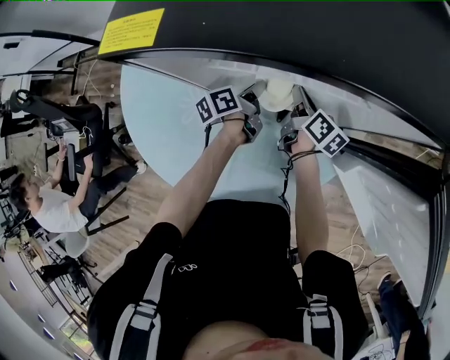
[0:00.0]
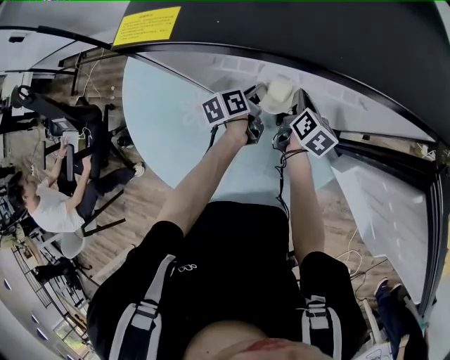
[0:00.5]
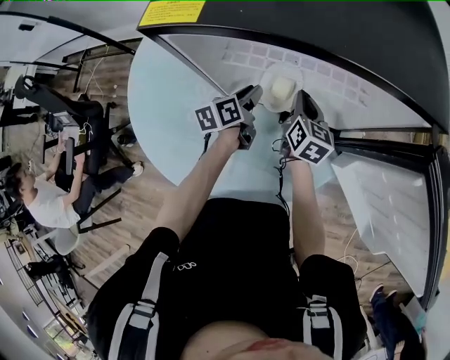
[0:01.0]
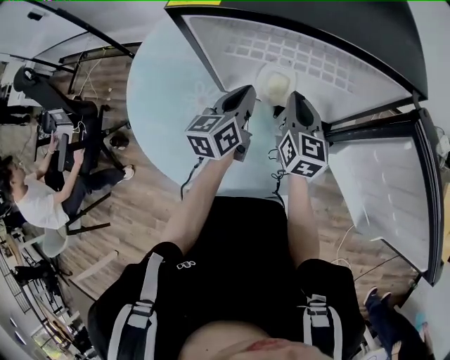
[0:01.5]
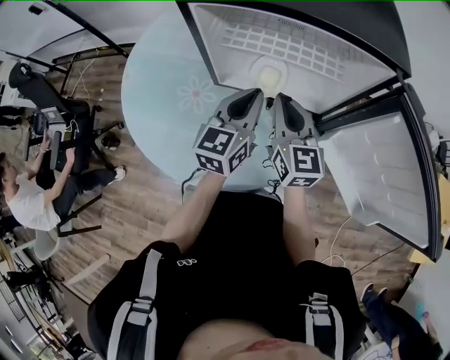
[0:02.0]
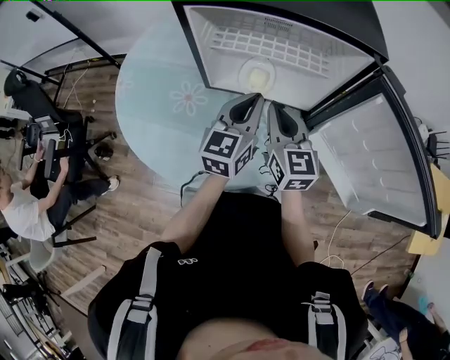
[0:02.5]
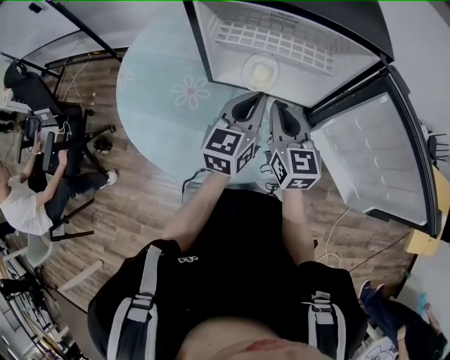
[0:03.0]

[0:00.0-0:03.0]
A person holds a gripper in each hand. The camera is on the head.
0:00.0 to 0:01.5: The grippers both shift upward and backward by about 15 cm. The left gripper changes its angle by about 40 degrees. Meanwhile the right gripper rolls counterclockwise, seen from behind, by roughly 40 degrees.
0:01.5 to 0:03.0: The right gripper is displaced backward and upward by some 10 cm. Meanwhile the left gripper shifts about 10 cm backward, upward and to the right.

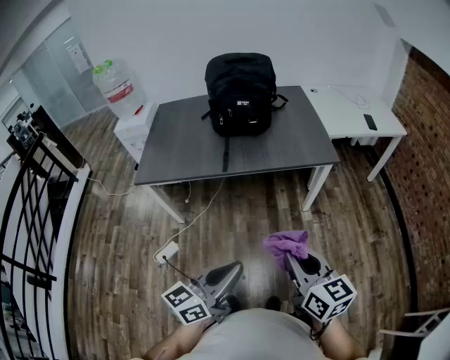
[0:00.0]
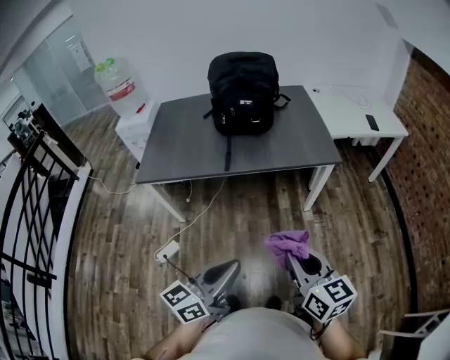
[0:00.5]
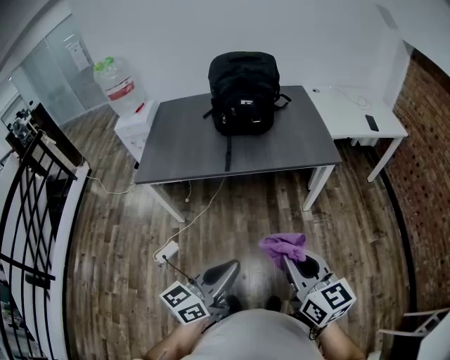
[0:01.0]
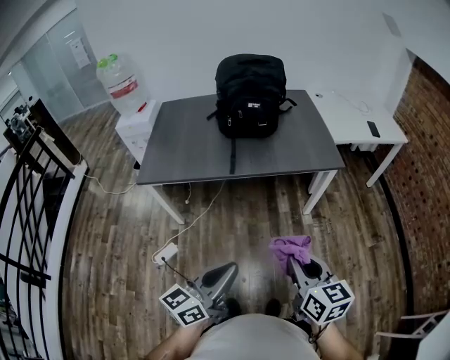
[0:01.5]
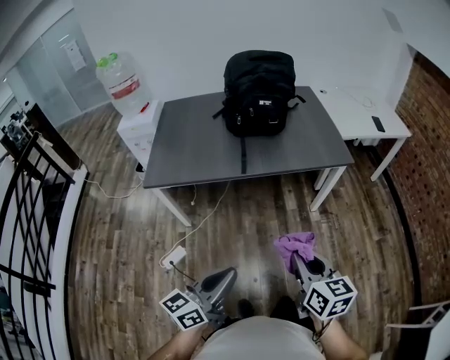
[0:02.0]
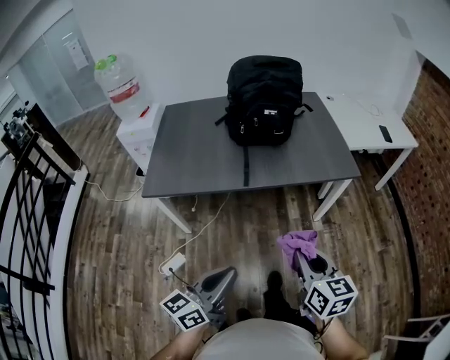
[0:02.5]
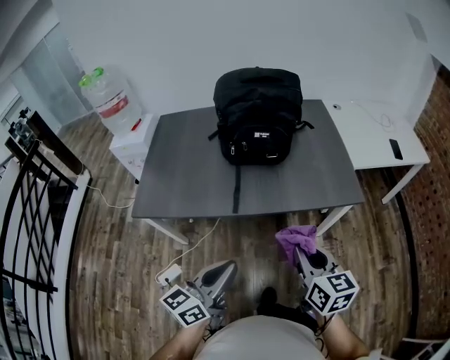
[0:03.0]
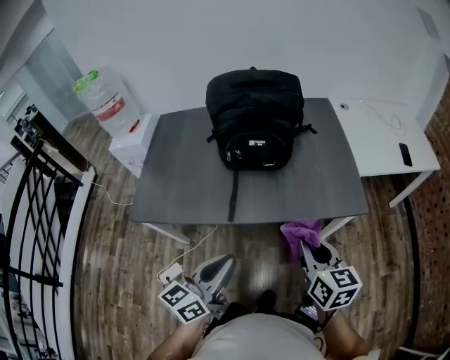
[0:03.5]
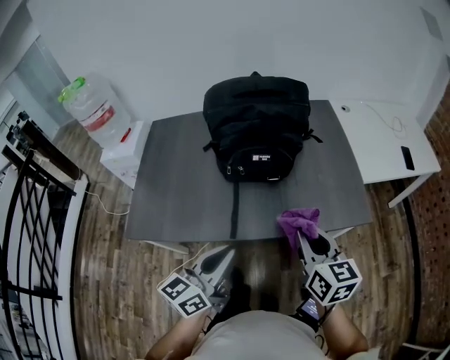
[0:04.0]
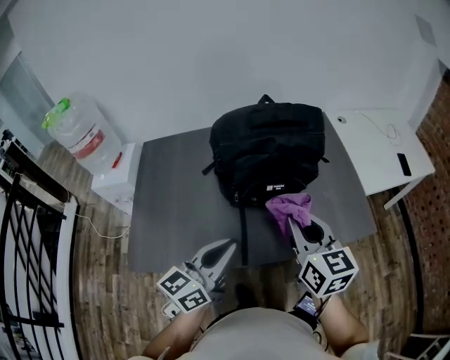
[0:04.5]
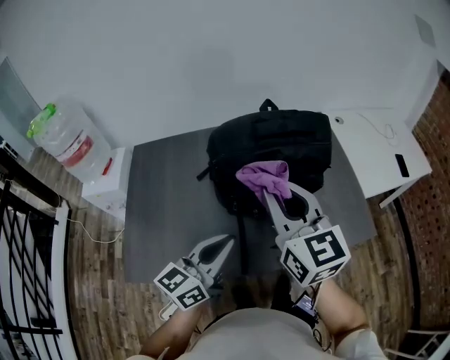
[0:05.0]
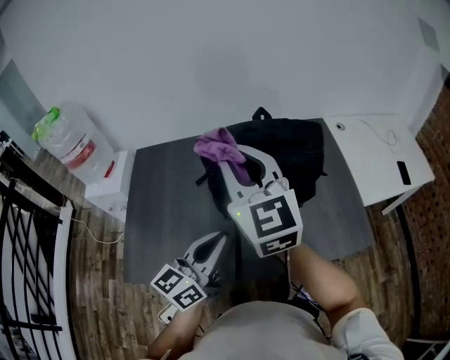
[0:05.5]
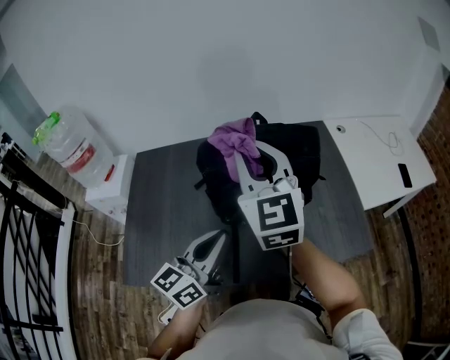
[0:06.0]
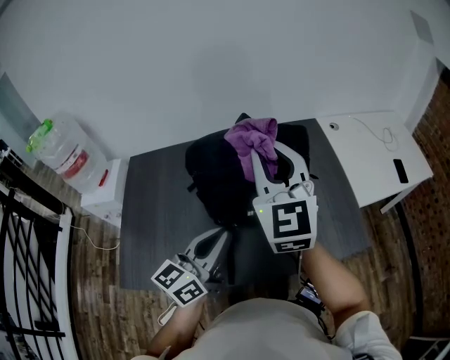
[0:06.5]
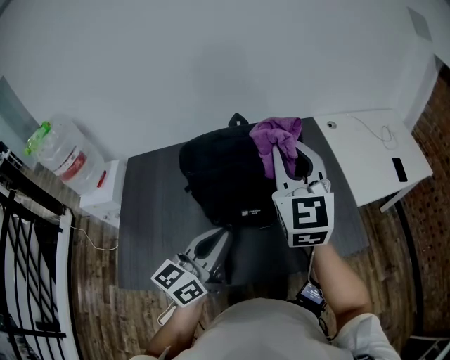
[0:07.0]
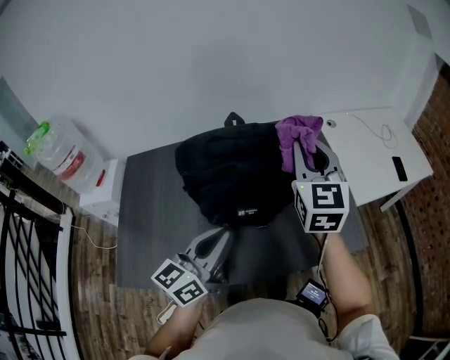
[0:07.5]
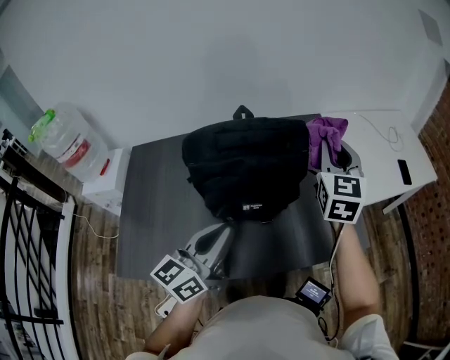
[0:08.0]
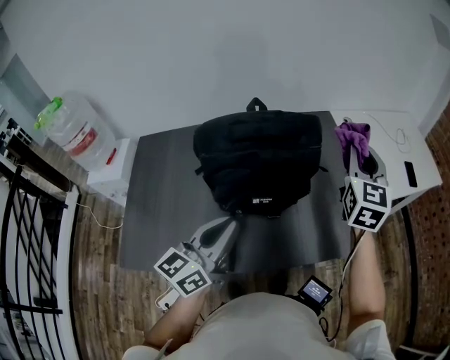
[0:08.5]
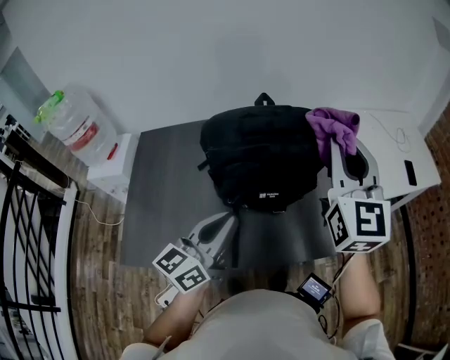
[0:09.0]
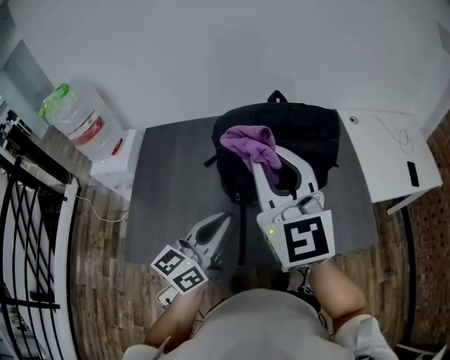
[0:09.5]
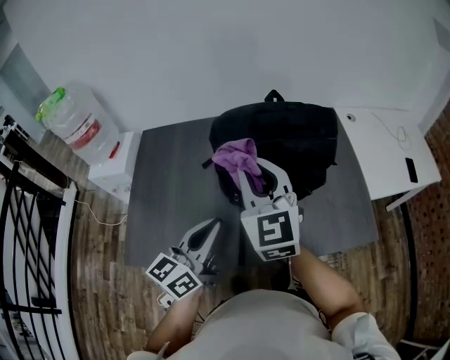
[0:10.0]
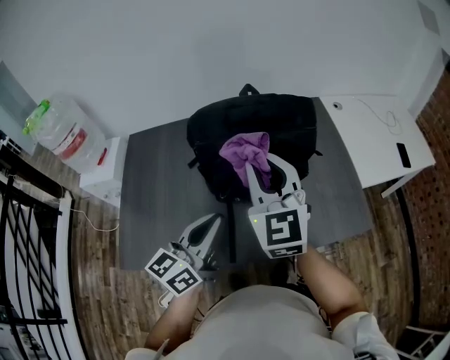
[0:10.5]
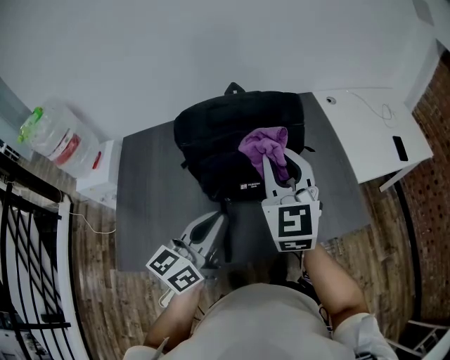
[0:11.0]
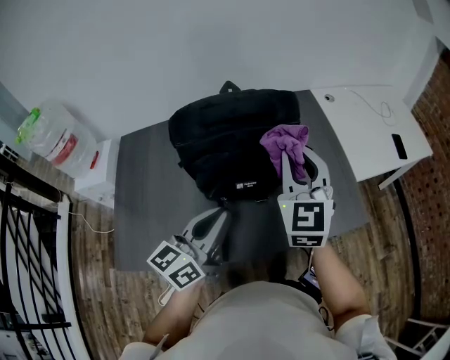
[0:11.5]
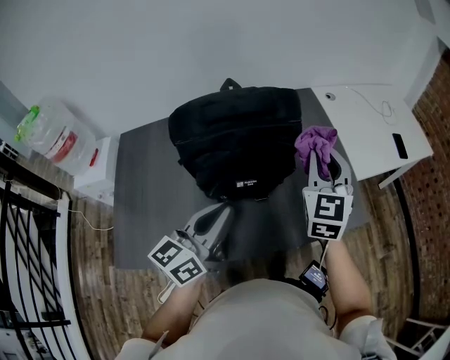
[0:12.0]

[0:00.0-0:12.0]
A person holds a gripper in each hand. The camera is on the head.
0:00.0 to 0:02.0: Both grippers move to the left, about 10 cm.
0:02.0 to 0:04.0: The grippers both shift forward by roughly 40 cm.
0:04.0 to 0:06.0: The right gripper travels forward, upward and to the left by approximately 35 cm, and changes its angle by about 40 degrees. The left gripper heads forward, covering some 20 cm.
0:06.0 to 0:08.0: The right gripper moves to the right and forward, about 25 cm, and rotates some 30 degrees.
0:08.0 to 0:10.0: The left gripper shifts roughly 10 cm to the left. The right gripper travels to the left and backward by about 30 cm, and turns by approximately 30 degrees.
0:10.0 to 0:12.0: The right gripper shifts about 25 cm to the right, and swivels approximately 30 degrees. Meanwhile the left gripper shifts some 10 cm to the right.

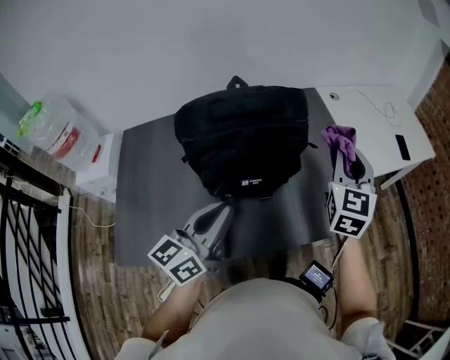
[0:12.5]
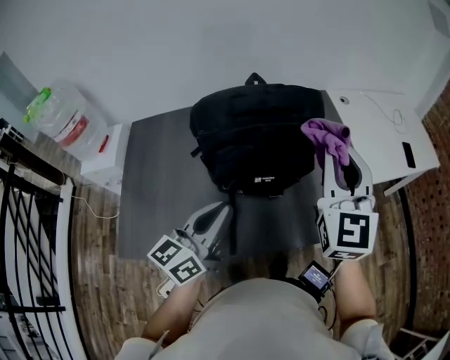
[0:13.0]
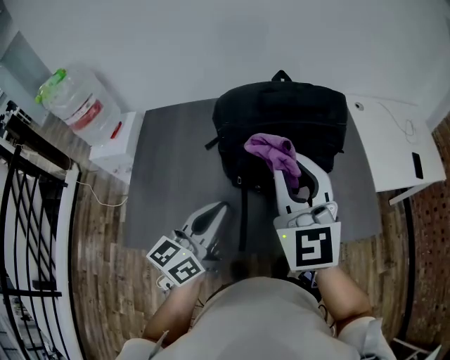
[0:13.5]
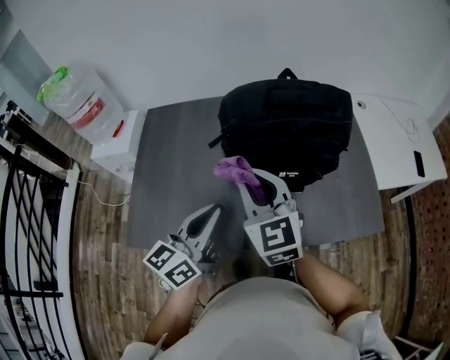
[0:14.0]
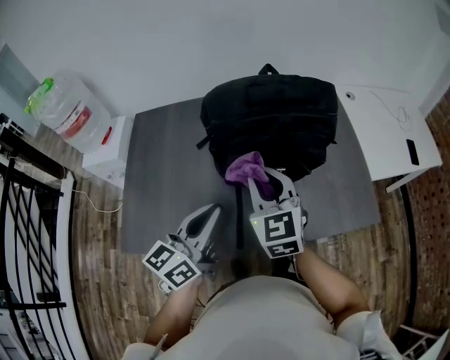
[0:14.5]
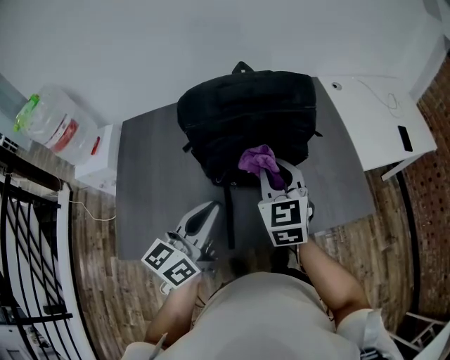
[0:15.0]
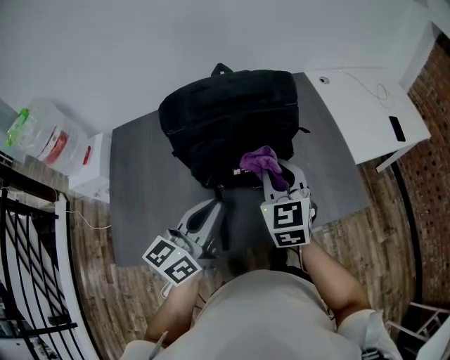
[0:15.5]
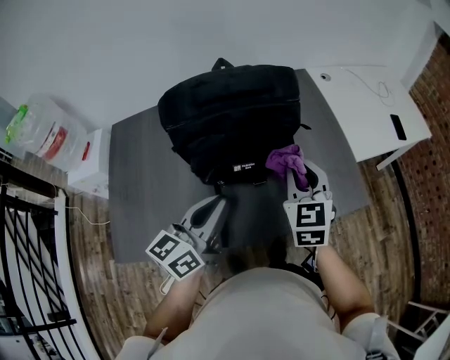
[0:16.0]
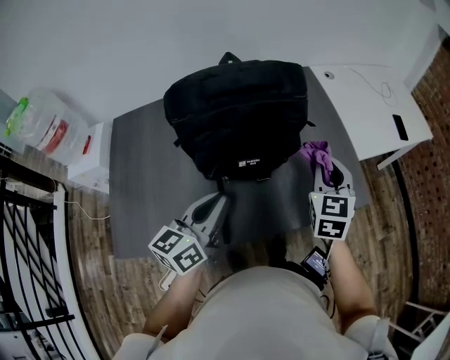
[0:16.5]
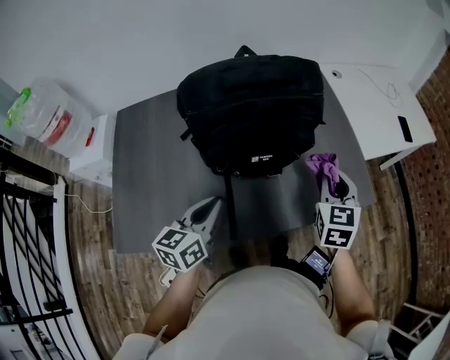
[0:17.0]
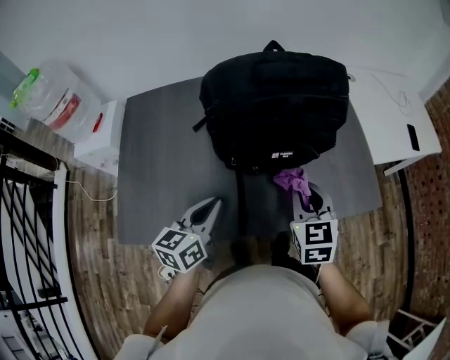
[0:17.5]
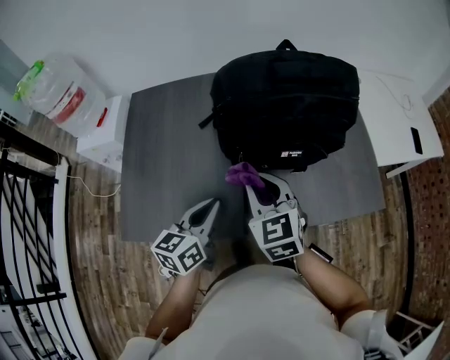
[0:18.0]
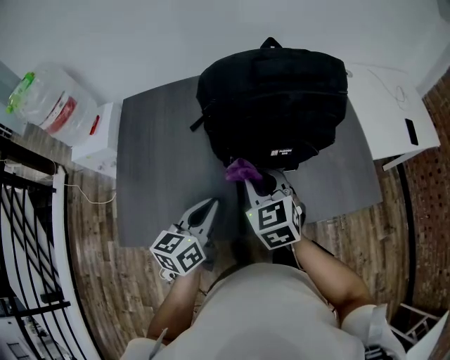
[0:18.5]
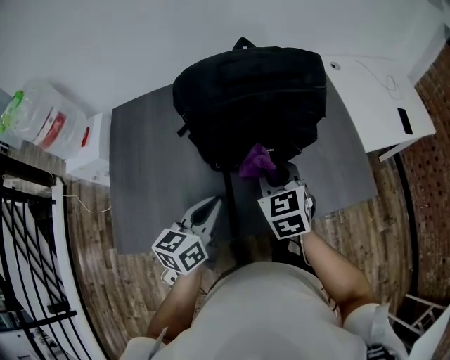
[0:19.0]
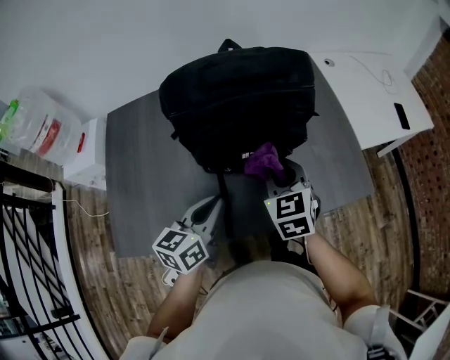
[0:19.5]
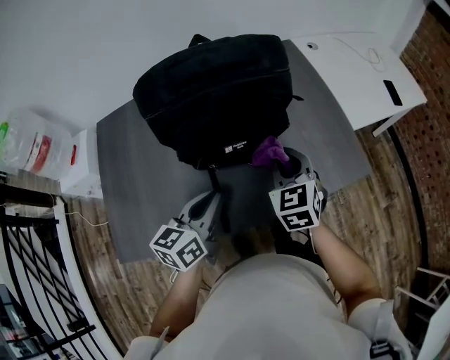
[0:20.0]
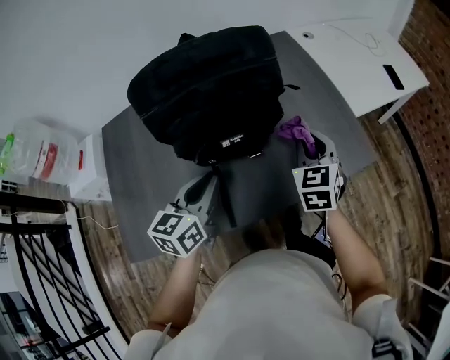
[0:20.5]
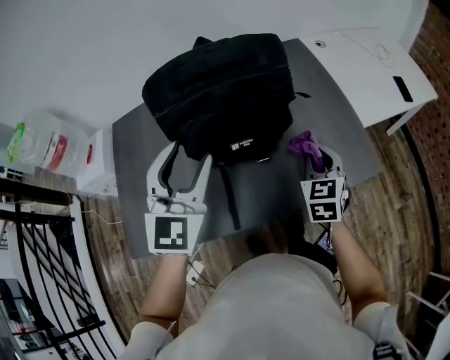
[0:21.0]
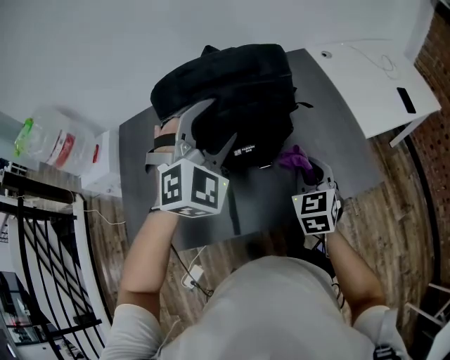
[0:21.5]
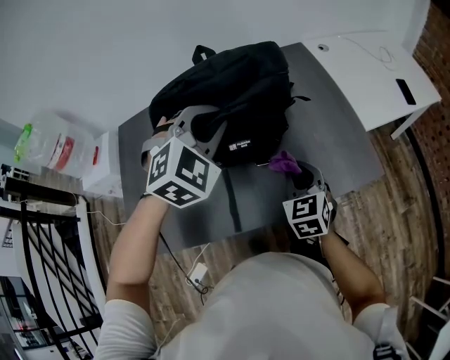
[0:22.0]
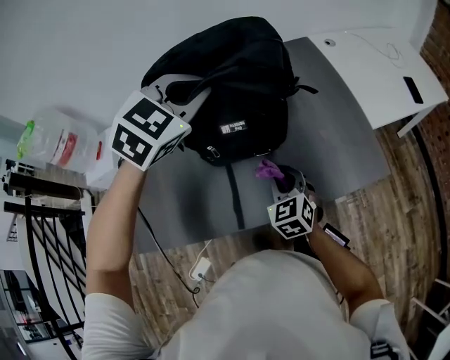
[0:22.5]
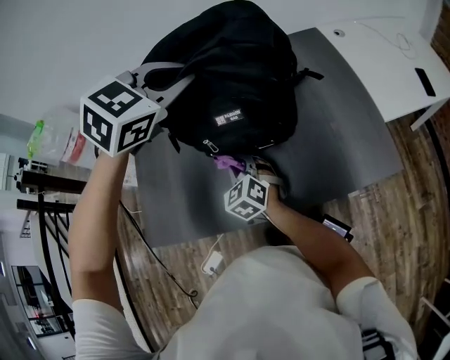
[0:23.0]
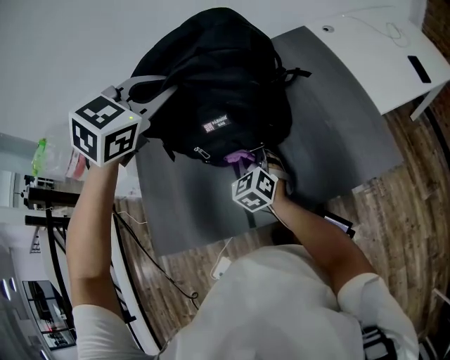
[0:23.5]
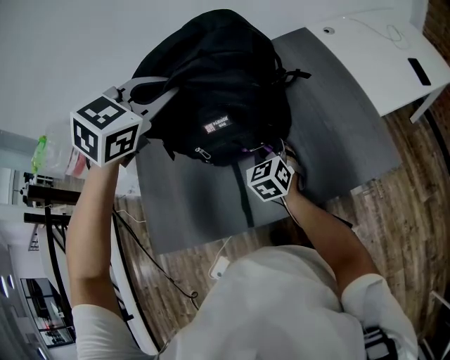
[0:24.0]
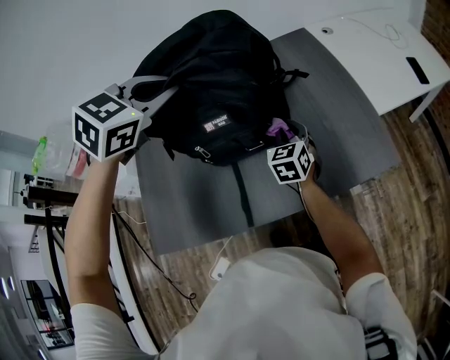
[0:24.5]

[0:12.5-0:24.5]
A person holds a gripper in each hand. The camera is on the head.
0:12.5 to 0:14.5: The right gripper changes place by some 30 cm, and changes its angle by about 40 degrees. Meanwhile the left gripper moves some 10 cm.
0:14.5 to 0:16.5: The left gripper shifts approximately 5 cm to the right. Meanwhile the right gripper moves to the right, about 25 cm, and rotates about 30 degrees.
0:16.5 to 0:18.5: The left gripper moves to the left and downward, some 10 cm. The right gripper goes approximately 25 cm to the left, and rotates approximately 30 degrees.
0:18.5 to 0:20.5: The right gripper shifts roughly 25 cm to the right, and swivels about 30 degrees, while the left gripper goes some 10 cm to the right and forward.
0:20.5 to 0:22.5: The left gripper shifts roughly 20 cm upward and forward, rotates around the line of its fingers by about 60 degrees, clockwise from behind, and opens and closes again; the right gripper shifts about 15 cm to the left, downward and backward, and turns by approximately 20 degrees.
0:22.5 to 0:24.5: The right gripper shifts approximately 15 cm forward, and reaches about 15 cm to the left, then returns.
